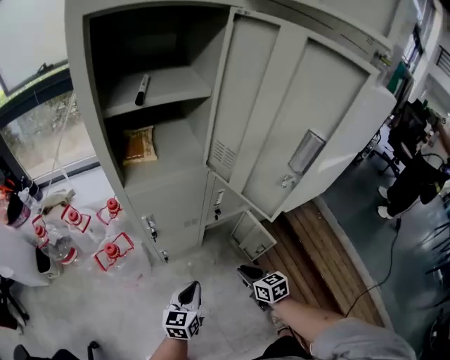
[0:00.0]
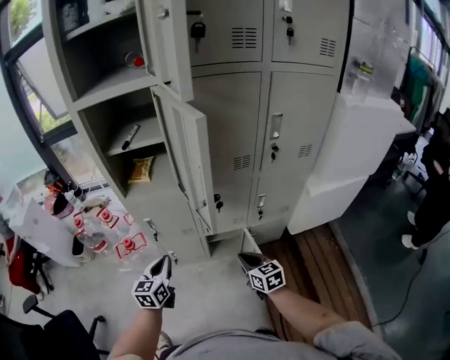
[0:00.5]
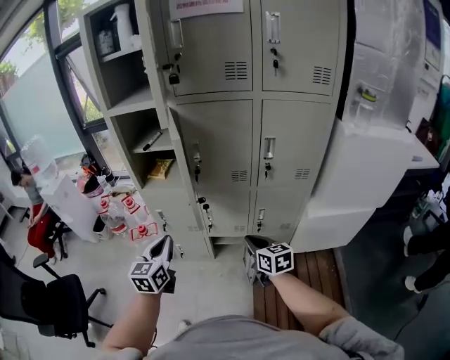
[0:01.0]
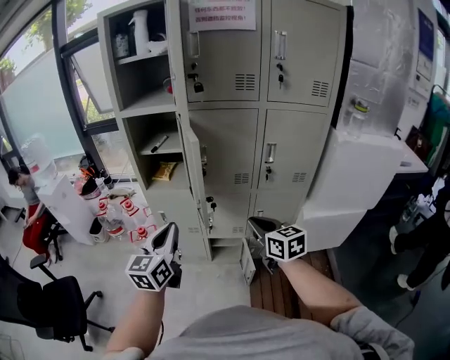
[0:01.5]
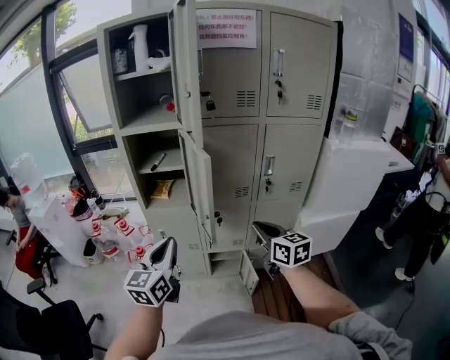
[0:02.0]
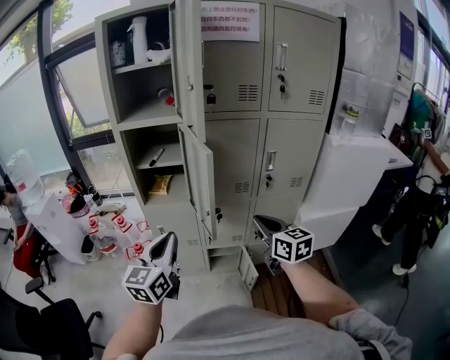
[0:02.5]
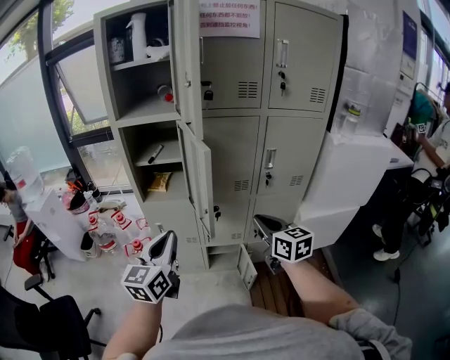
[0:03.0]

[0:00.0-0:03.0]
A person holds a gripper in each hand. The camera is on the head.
0:00.0 to 0:01.5: Both grippers move upward, approximately 50 cm. The left gripper turns by roughly 40 degrees. The right gripper rotates approximately 30 degrees.
0:01.5 to 0:03.0: The grippers move only a little.

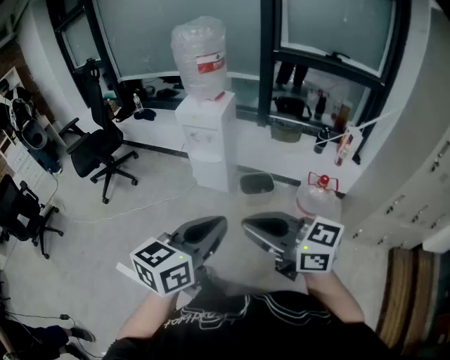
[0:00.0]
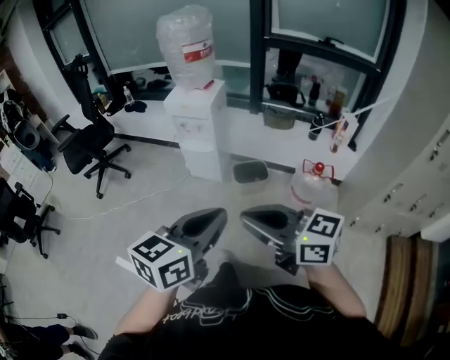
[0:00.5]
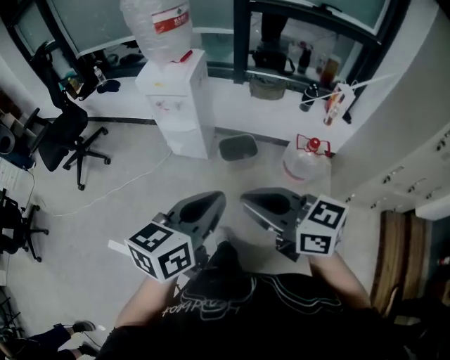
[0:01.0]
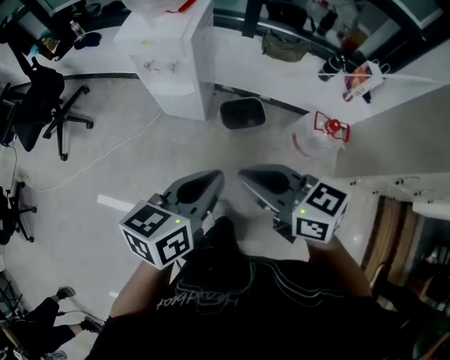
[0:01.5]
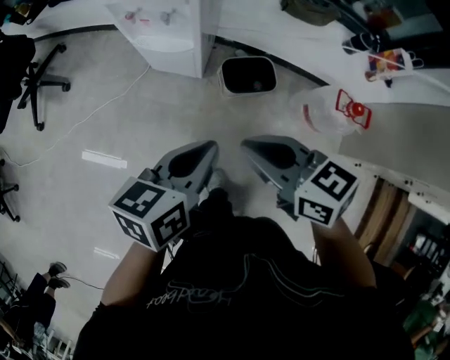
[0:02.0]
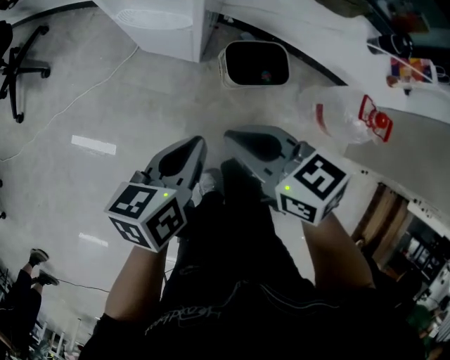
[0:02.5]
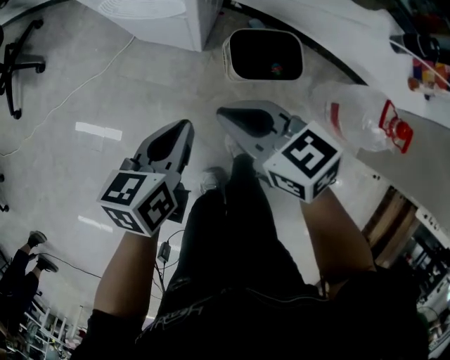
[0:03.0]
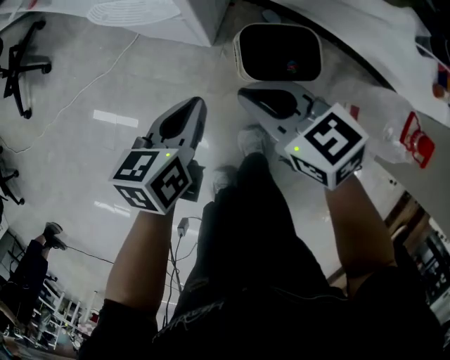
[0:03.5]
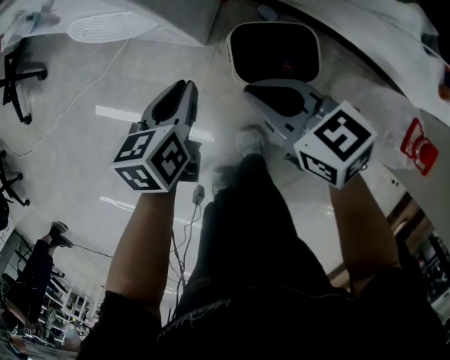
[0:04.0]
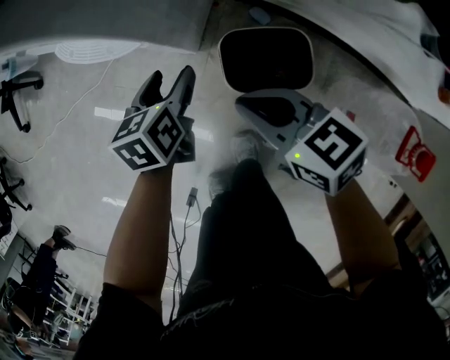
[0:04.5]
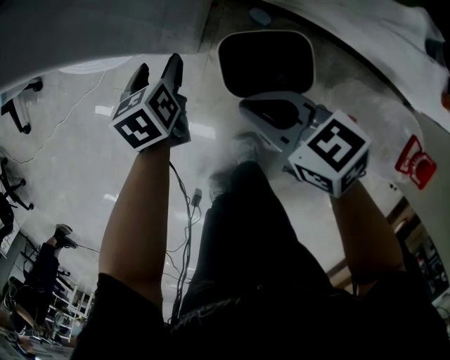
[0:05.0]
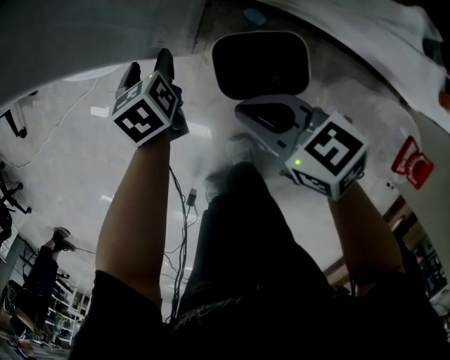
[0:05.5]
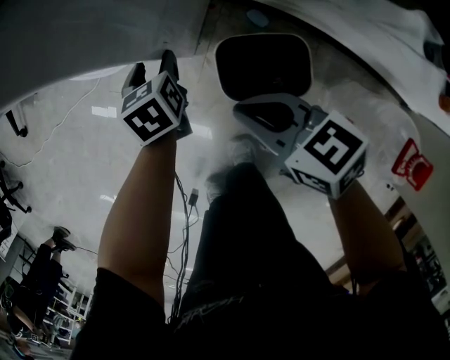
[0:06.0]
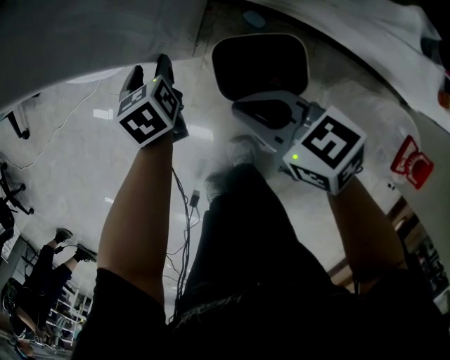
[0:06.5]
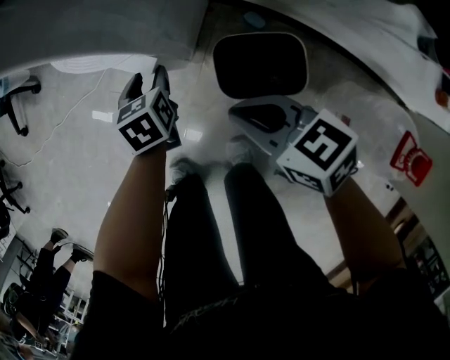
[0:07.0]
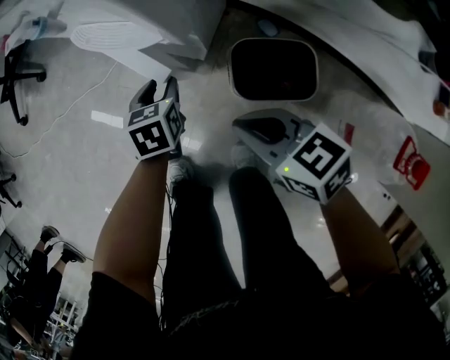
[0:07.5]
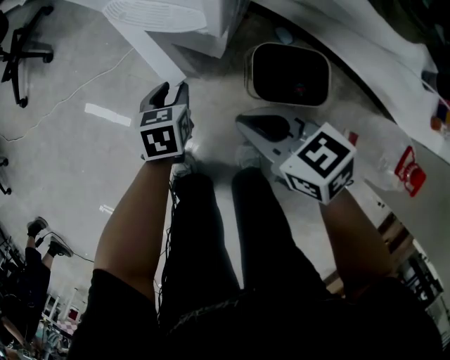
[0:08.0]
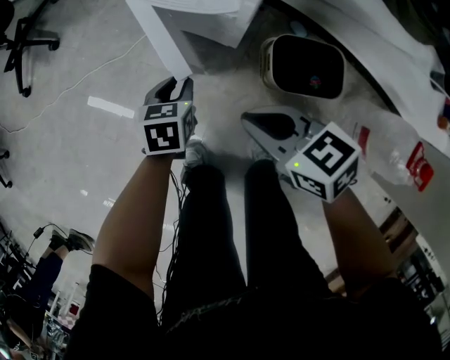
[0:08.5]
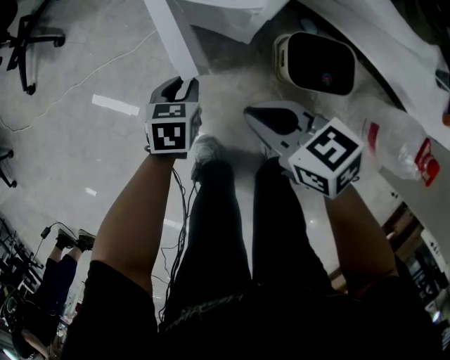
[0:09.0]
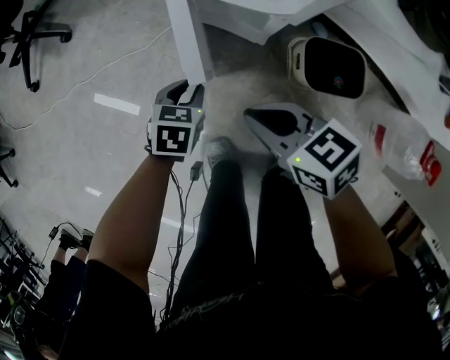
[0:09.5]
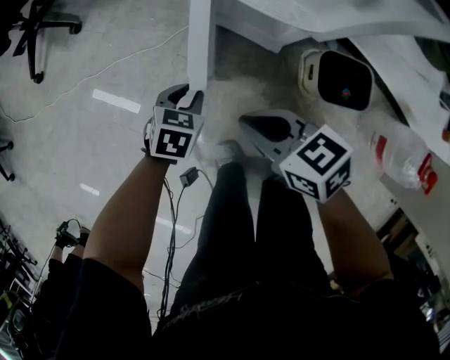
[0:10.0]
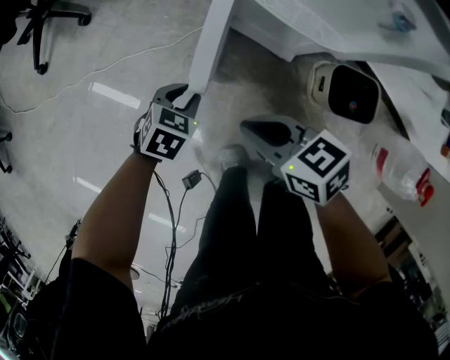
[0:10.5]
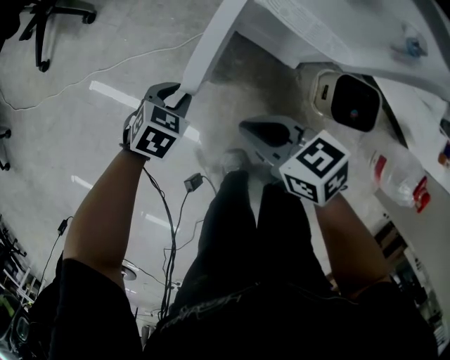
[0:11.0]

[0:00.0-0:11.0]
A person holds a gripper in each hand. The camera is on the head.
0:00.0 to 0:02.0: Both grippers travel together forward and downward, about 50 cm. The right gripper turns by roughly 30 degrees, while the left gripper swivels some 30 degrees.
0:02.0 to 0:03.5: The grippers both shift downward and forward by roughly 35 cm.
0:03.5 to 0:05.5: The left gripper travels forward and downward by about 20 cm, rotates roughly 30 degrees, and opens its fingers, while the right gripper shifts approximately 10 cm to the right.
0:05.5 to 0:07.5: Both grippers move to the left, roughly 10 cm. The left gripper closes.
0:07.5 to 0:09.0: The grippers both shift to the left by about 15 cm.
0:09.0 to 0:11.0: Both grippers travel together to the left and forward, roughly 20 cm. The left gripper swivels approximately 20 degrees.

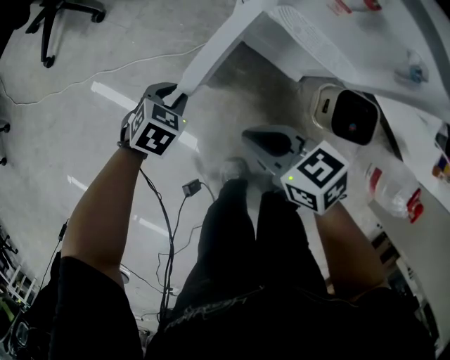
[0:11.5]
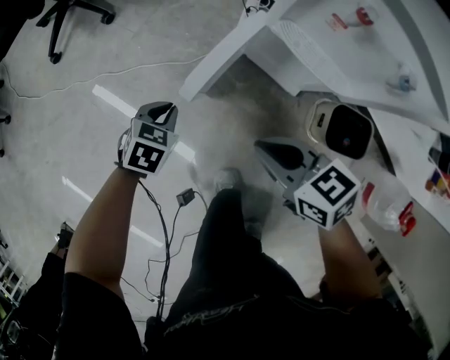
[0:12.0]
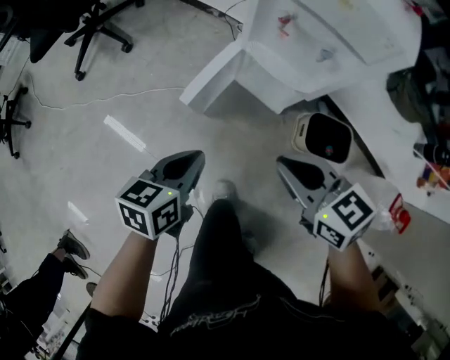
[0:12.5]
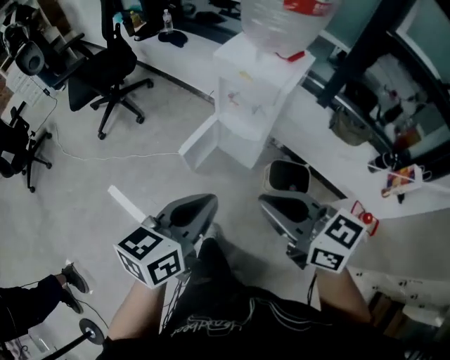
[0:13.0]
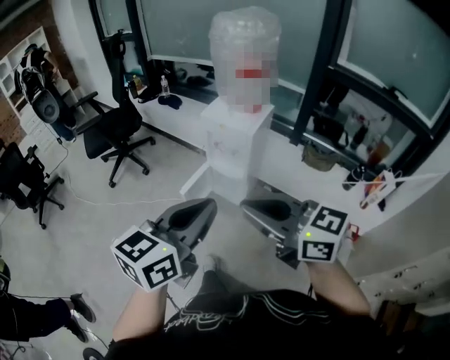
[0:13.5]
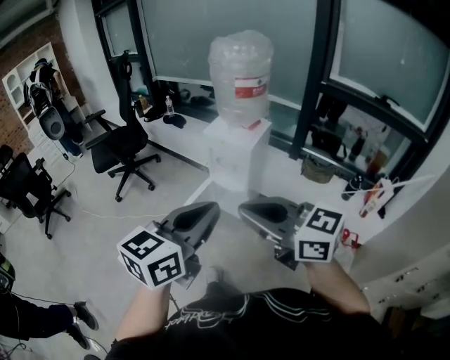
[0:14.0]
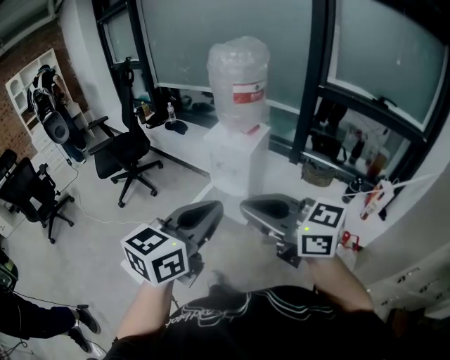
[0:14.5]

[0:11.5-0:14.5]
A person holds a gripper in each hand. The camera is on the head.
0:11.5 to 0:13.0: Both grippers move upward and backward, roughly 60 cm. The right gripper turns by some 30 degrees. The left gripper tips its fingers upward by about 50 degrees.
0:13.0 to 0:14.5: The two grippers go approximately 30 cm upward and backward. The left gripper turns by some 20 degrees.

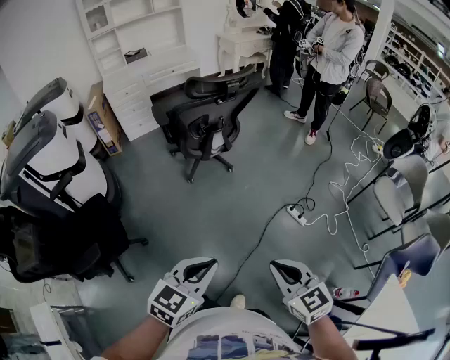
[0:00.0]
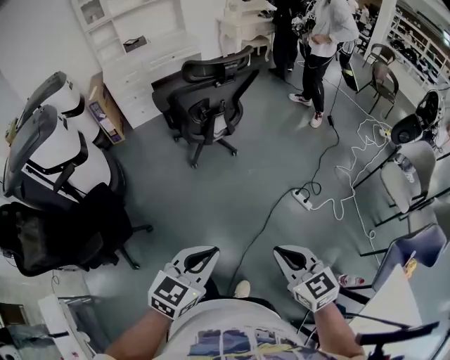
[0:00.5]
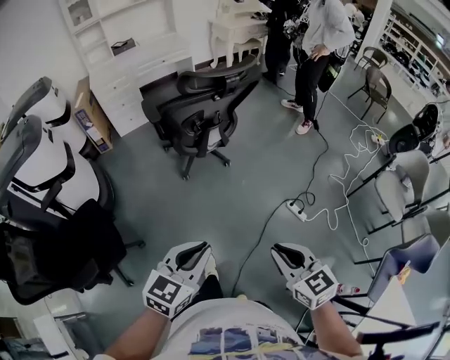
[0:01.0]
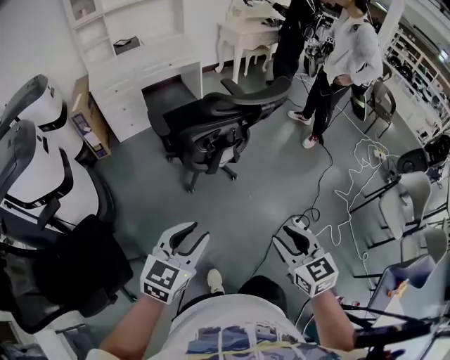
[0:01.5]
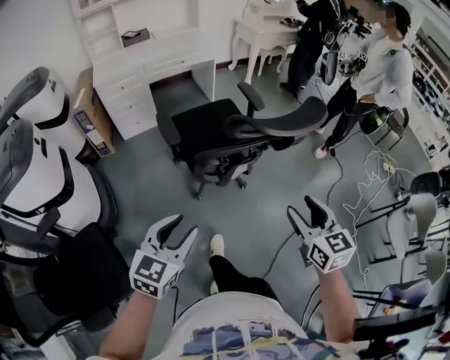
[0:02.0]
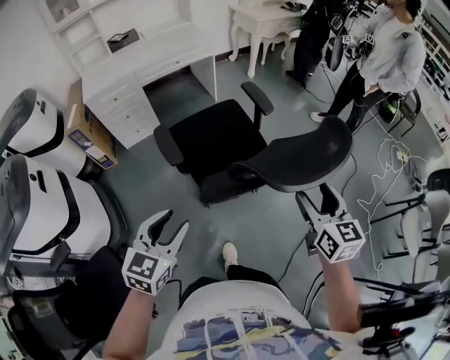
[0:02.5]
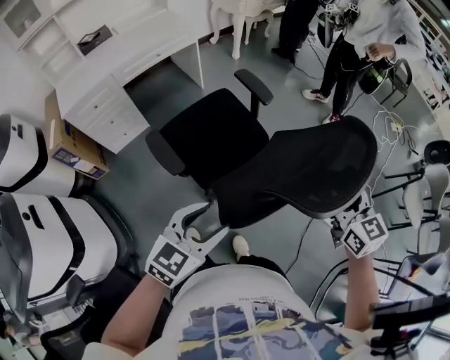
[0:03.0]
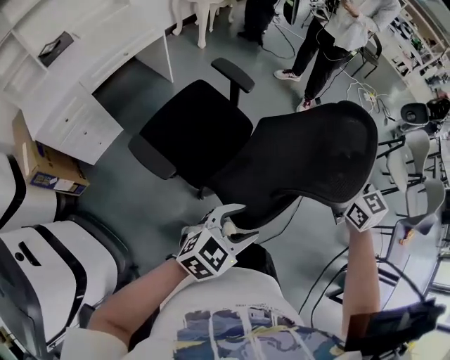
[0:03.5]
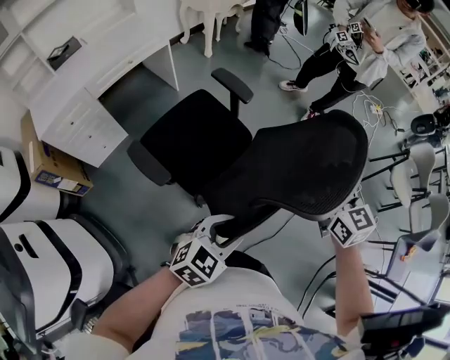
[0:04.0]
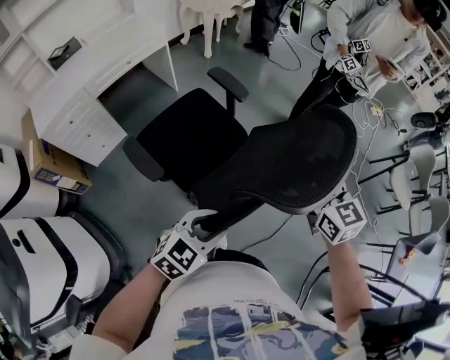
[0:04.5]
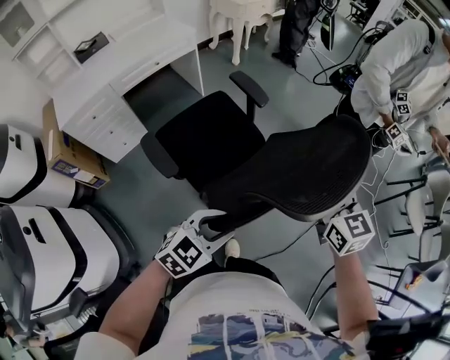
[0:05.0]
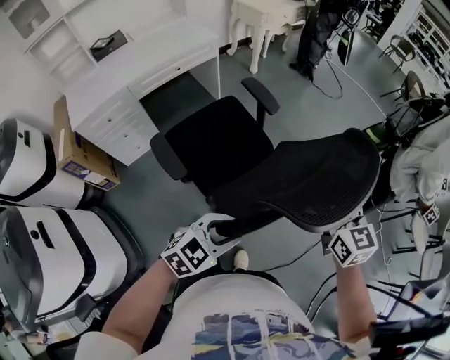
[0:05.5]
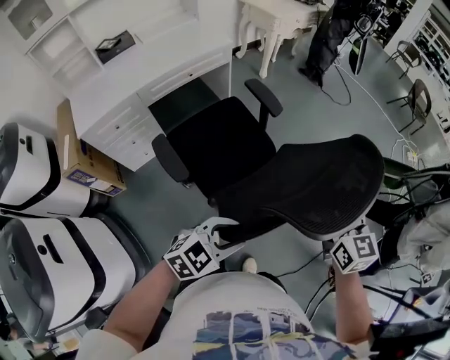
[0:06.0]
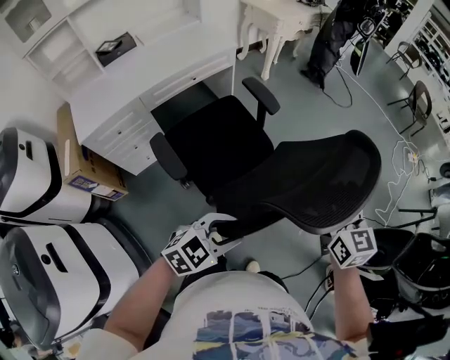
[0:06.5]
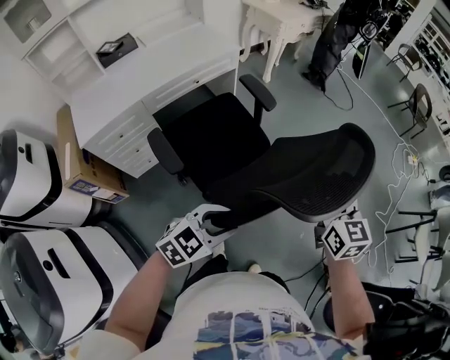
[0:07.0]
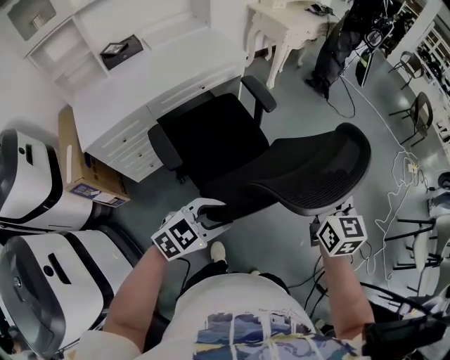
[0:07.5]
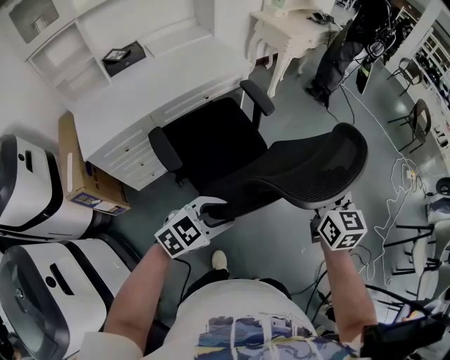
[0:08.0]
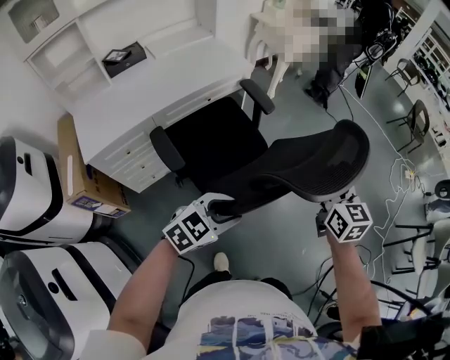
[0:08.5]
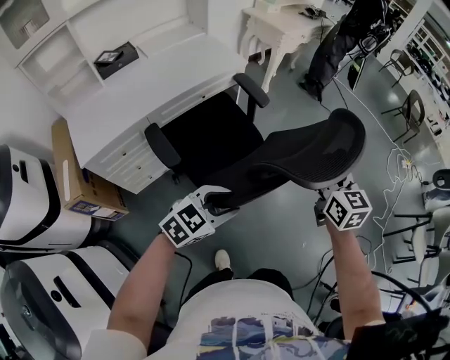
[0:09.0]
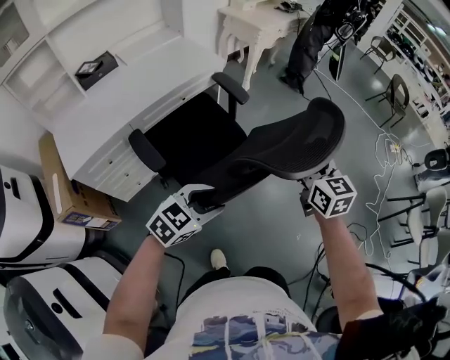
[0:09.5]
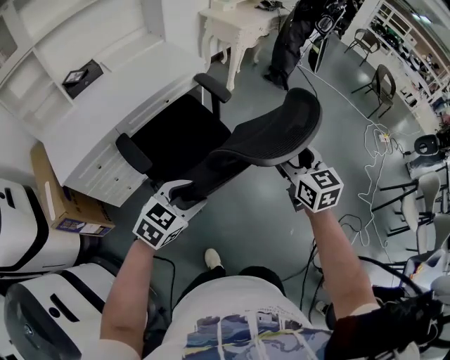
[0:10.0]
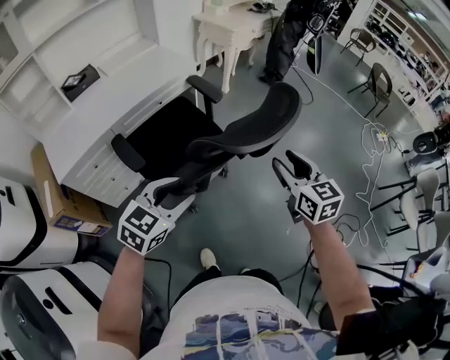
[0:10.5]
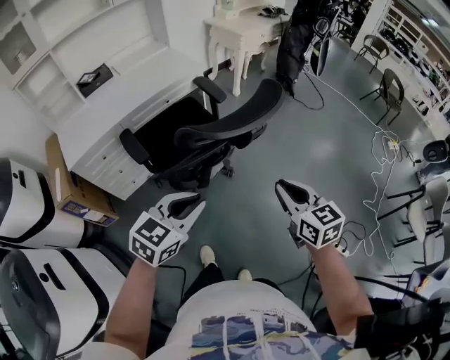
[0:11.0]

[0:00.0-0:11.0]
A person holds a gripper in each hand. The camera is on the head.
0:00.0 to 0:02.0: The pair of grippers is taken forward and to the left, approximately 50 cm. The right gripper opens up. The left gripper opens.
0:02.0 to 0:03.5: The right gripper changes place by about 20 cm; the left gripper changes place by approximately 20 cm, changes its angle by approximately 50 degrees, and opens up.
0:03.5 to 0:05.5: The left gripper travels to the left and forward by about 15 cm, and closes up; the right gripper moves to the left, approximately 15 cm.
0:05.5 to 0:07.5: The grippers both shift to the left and forward by approximately 25 cm.
0:07.5 to 0:09.0: Both grippers travel together to the left and forward, some 10 cm.
0:09.0 to 0:11.0: The left gripper heads to the right, upward and backward, covering some 15 cm, and closes up. Meanwhile the right gripper travels backward and to the right by roughly 20 cm, and closes its fingers.
